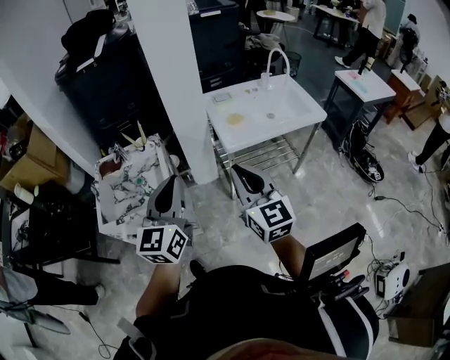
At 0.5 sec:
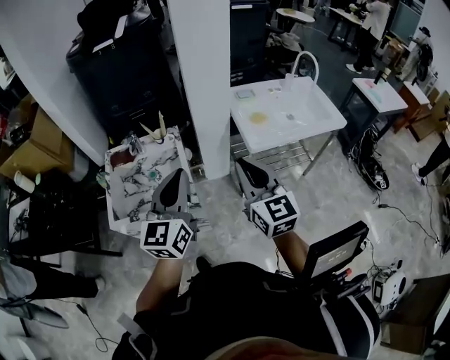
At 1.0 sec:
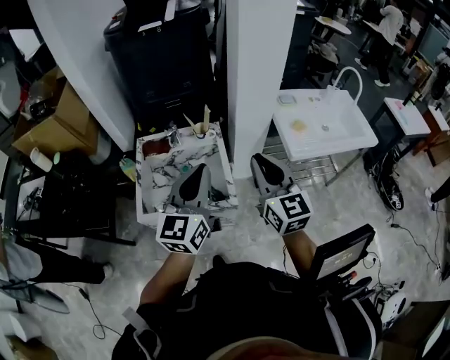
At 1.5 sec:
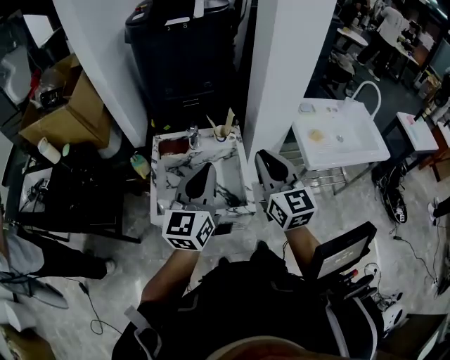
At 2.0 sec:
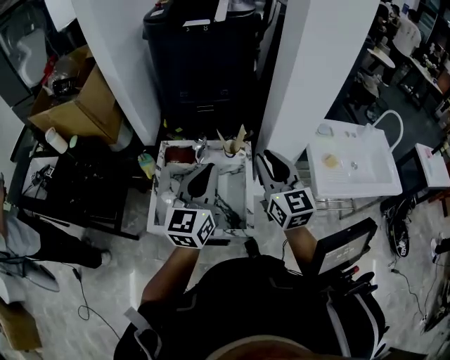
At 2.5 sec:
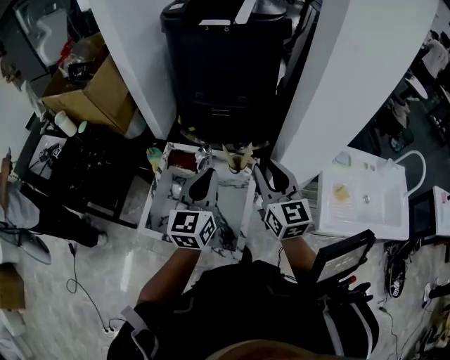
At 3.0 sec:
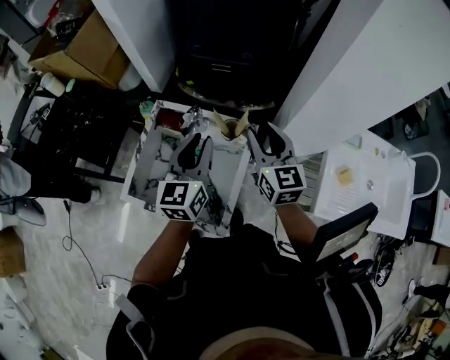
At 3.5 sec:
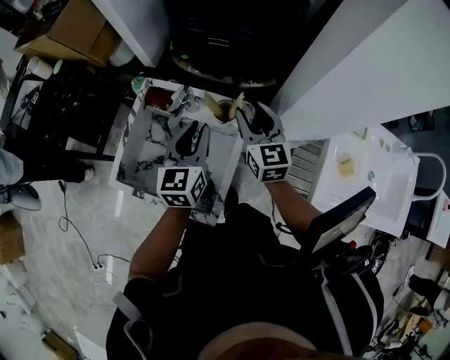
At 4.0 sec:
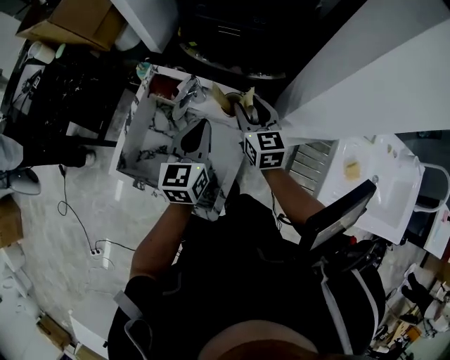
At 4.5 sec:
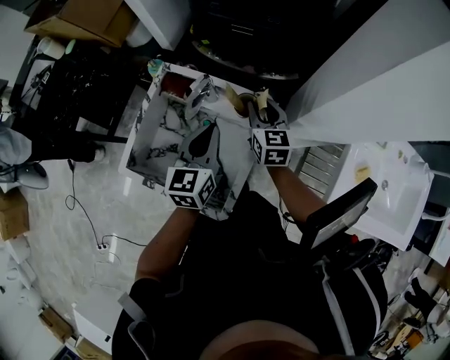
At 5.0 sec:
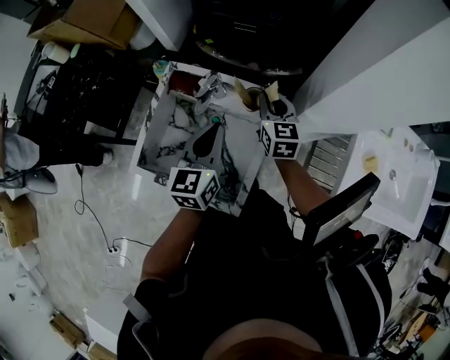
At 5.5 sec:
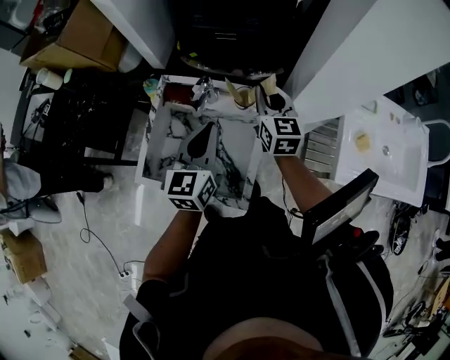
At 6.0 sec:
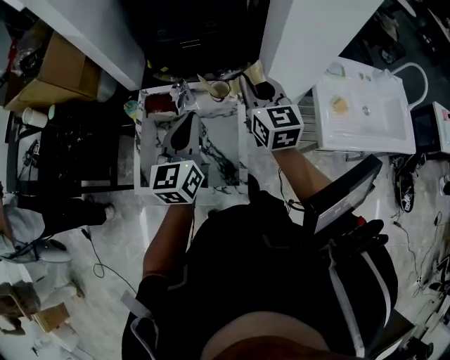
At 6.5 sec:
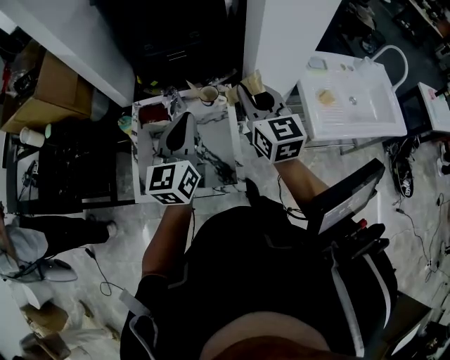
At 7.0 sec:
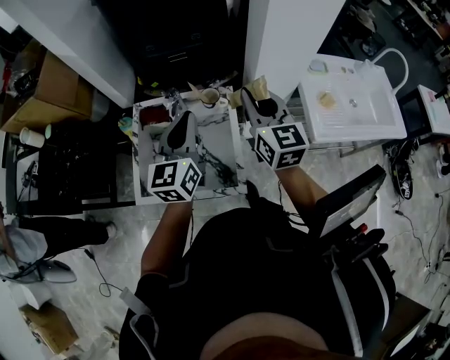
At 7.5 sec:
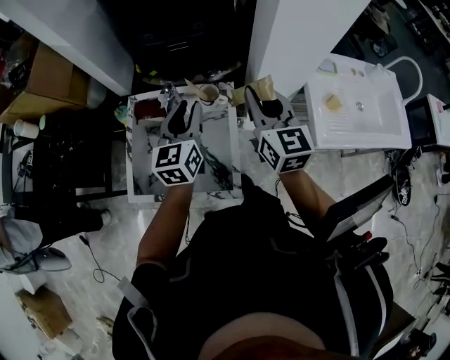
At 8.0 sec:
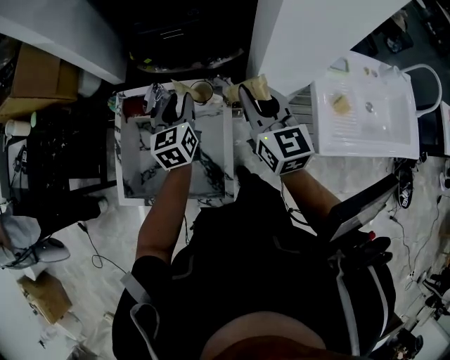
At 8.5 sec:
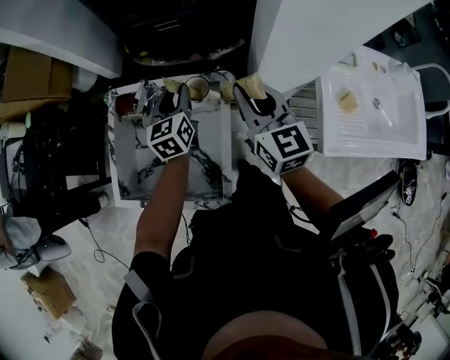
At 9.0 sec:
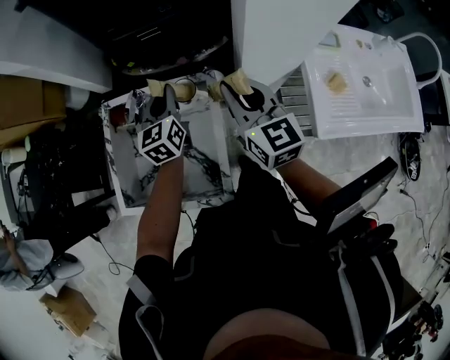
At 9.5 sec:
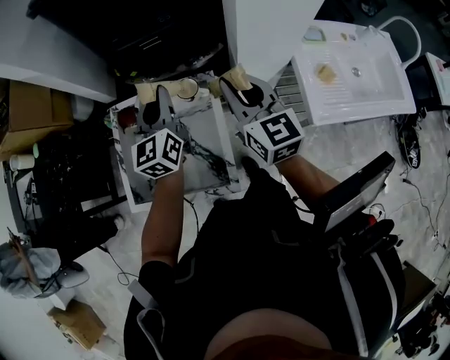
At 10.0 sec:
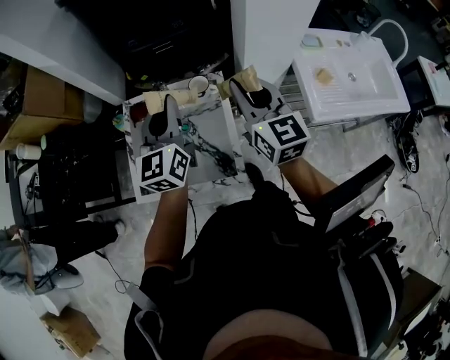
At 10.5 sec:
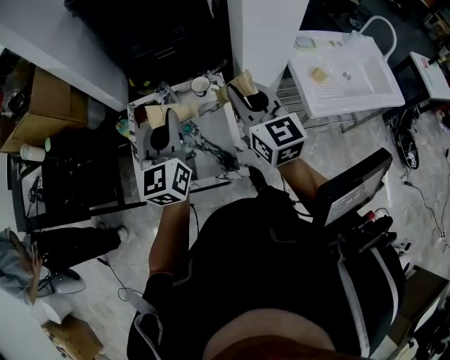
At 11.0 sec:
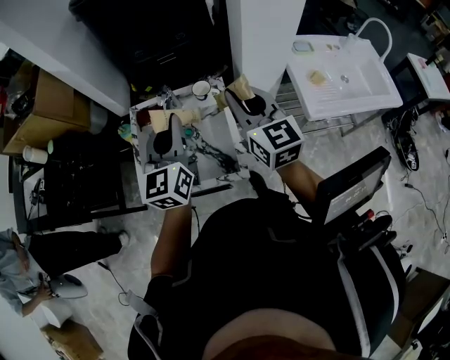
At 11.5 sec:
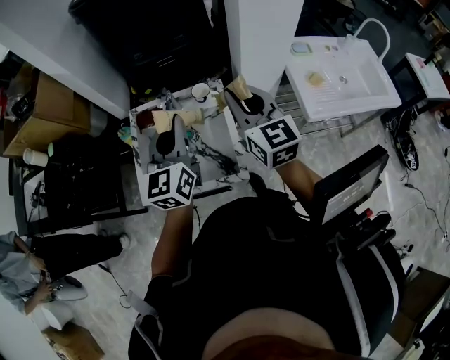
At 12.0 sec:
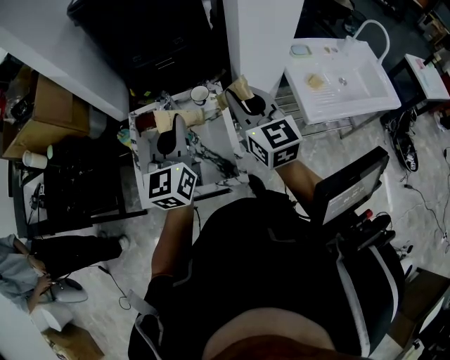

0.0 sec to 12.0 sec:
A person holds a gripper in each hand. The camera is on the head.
0.0 sec to 2.0 sec: The right gripper moves forward and to the left, some 40 cm; the left gripper goes approximately 35 cm to the left and forward.
2.0 sec to 4.0 sec: The two grippers go approximately 25 cm downward and forward. The left gripper changes its angle by roughly 30 degrees, while the right gripper swivels roughly 30 degrees, and opens its fingers.
4.0 sec to 6.0 sec: The two grippers go some 15 cm upward and backward. The right gripper rotates about 20 degrees, and closes up.
6.0 sec to 8.0 sec: The left gripper is displaced forward and downward by about 20 cm, and opens up. Meanwhile the right gripper reaches about 5 cm backward, then returns.
8.0 sec to 10.0 sec: The left gripper shifts approximately 20 cm upward and backward, turns by roughly 20 degrees, and closes, while the right gripper travels backward and upward by about 10 cm.
10.0 sec to 12.0 sec: The left gripper goes some 5 cm backward. Meanwhile the right gripper ends up about 5 cm from where it was.

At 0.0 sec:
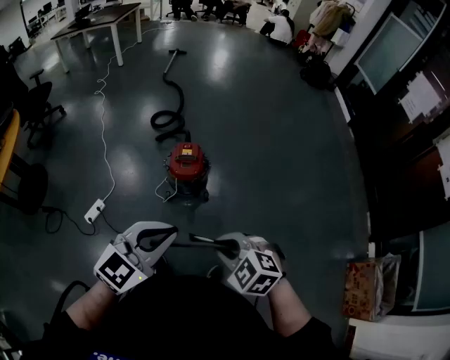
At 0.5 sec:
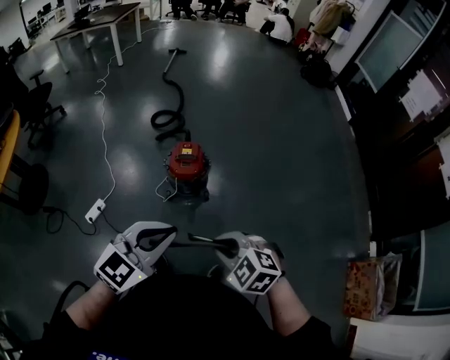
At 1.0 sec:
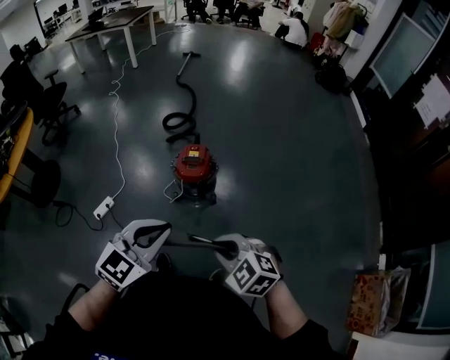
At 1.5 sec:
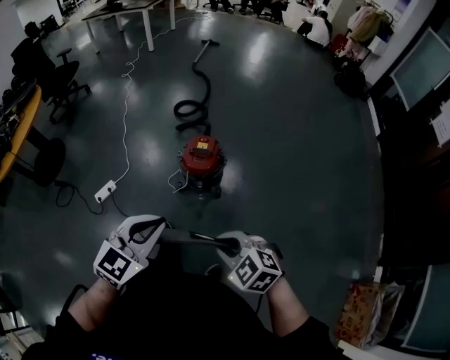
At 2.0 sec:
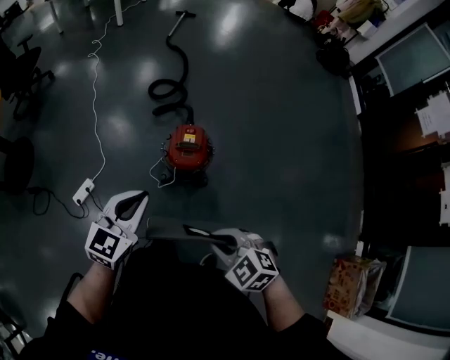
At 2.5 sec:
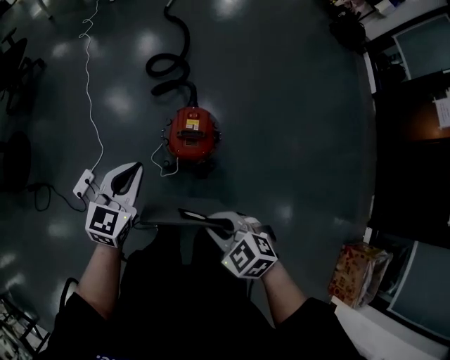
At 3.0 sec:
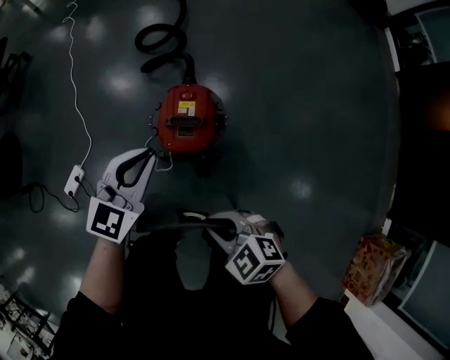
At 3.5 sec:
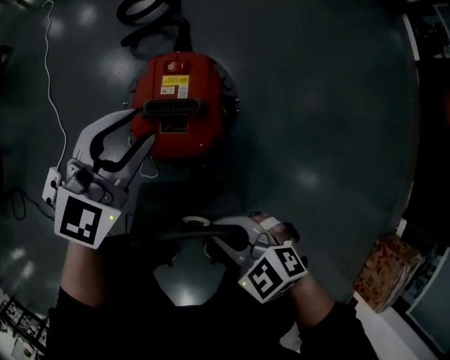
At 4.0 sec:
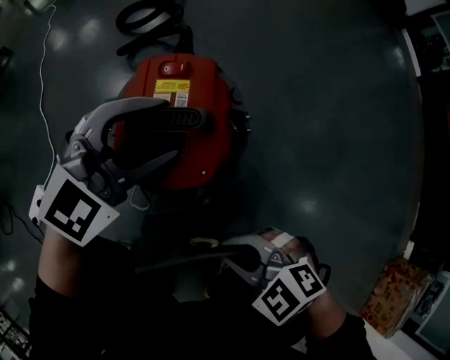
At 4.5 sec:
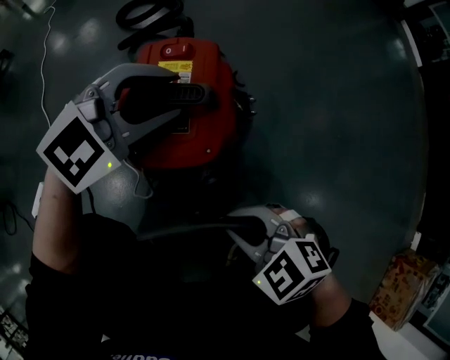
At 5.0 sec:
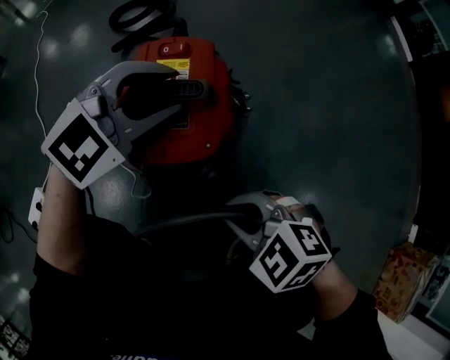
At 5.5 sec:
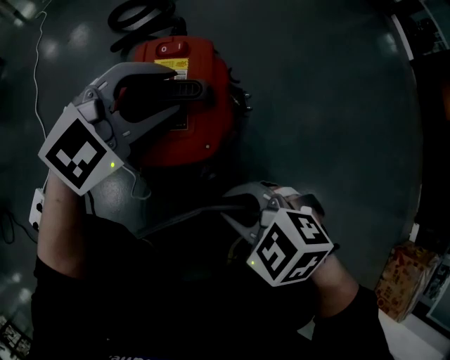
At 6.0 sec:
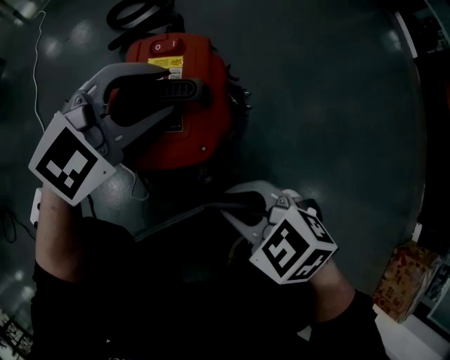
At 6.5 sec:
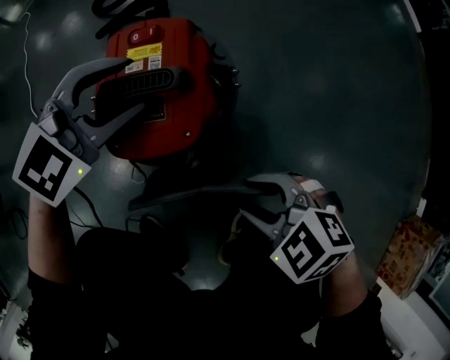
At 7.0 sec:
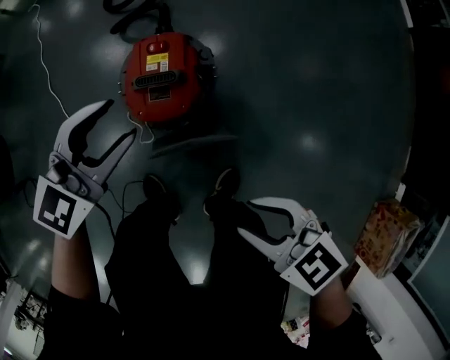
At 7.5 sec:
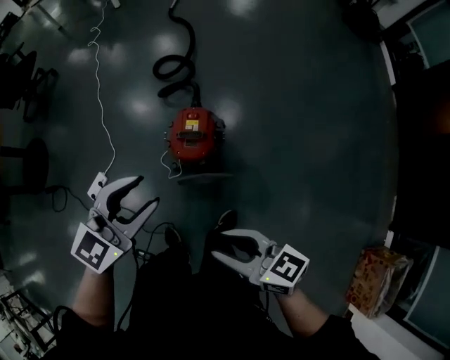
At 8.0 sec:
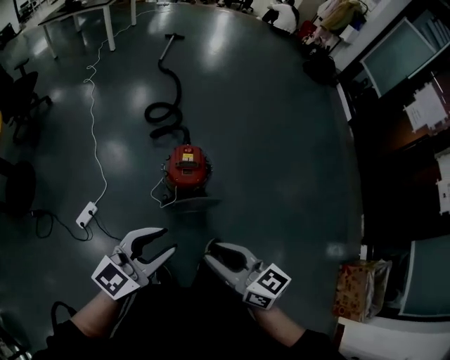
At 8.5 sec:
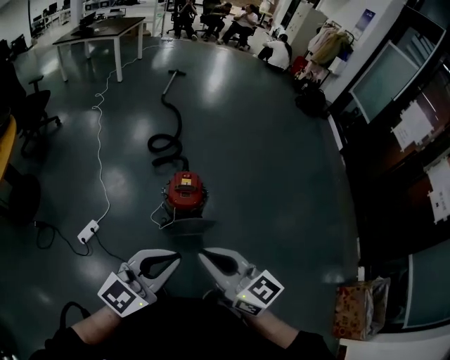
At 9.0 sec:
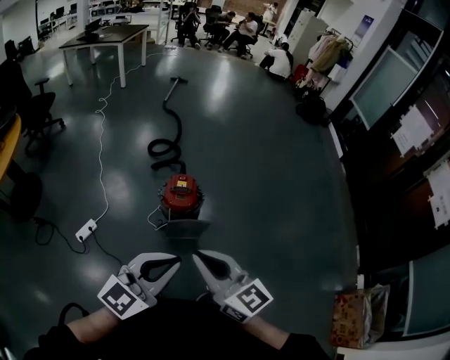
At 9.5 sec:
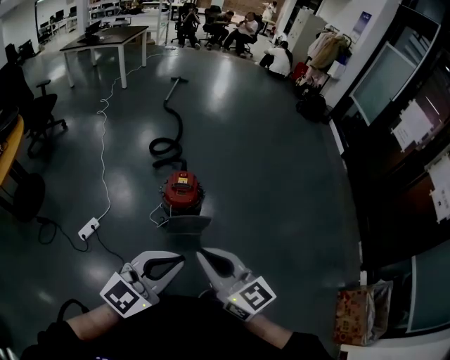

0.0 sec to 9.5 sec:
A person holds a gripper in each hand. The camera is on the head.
0.0 sec to 2.0 sec: The left gripper travels forward, downward and to the left by approximately 25 cm, and turns by about 20 degrees. Meanwhile the right gripper shifts about 15 cm forward and downward.
2.0 sec to 4.0 sec: The two grippers go about 40 cm downward. The left gripper rotates approximately 50 degrees, and opens up.
4.0 sec to 5.5 sec: There are only small adjustments of the grippers.
5.5 sec to 7.5 sec: The grippers both shift upward by approximately 50 cm. The left gripper changes its angle by about 40 degrees. Meanwhile the right gripper tips its fingers upward by roughly 40 degrees, and opens up.
7.5 sec to 9.5 sec: The left gripper goes some 30 cm backward and upward, and closes up. The right gripper travels upward and backward by about 25 cm, rotates approximately 40 degrees, and closes up.

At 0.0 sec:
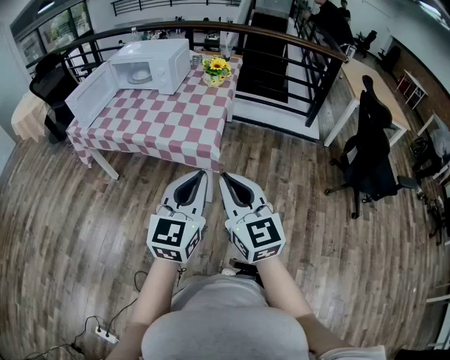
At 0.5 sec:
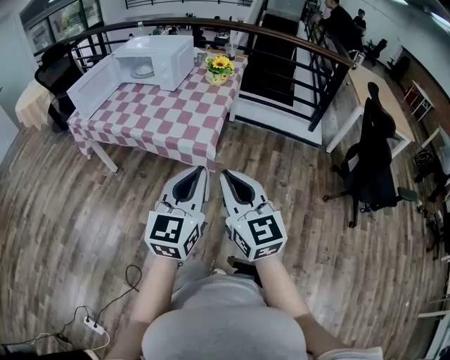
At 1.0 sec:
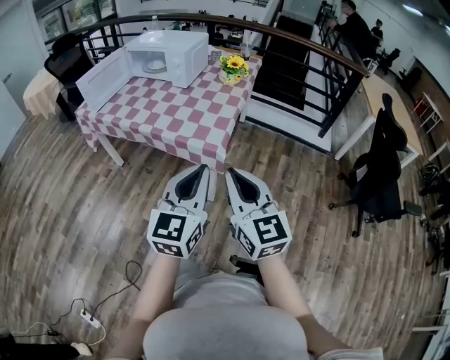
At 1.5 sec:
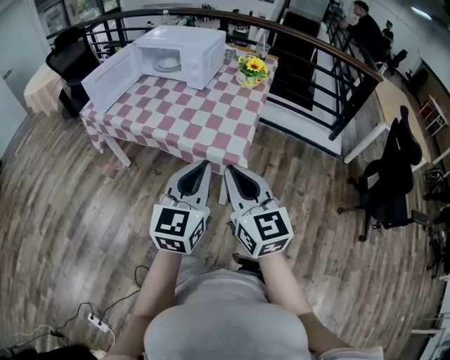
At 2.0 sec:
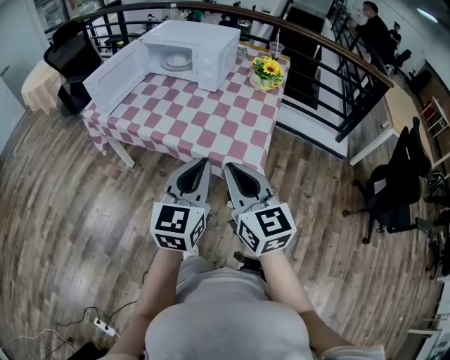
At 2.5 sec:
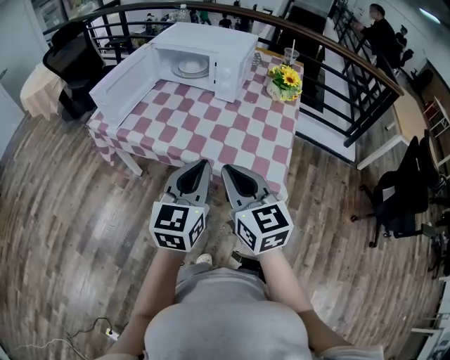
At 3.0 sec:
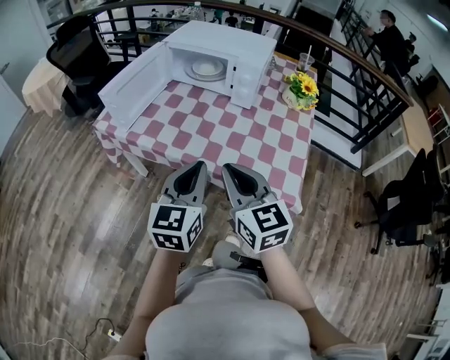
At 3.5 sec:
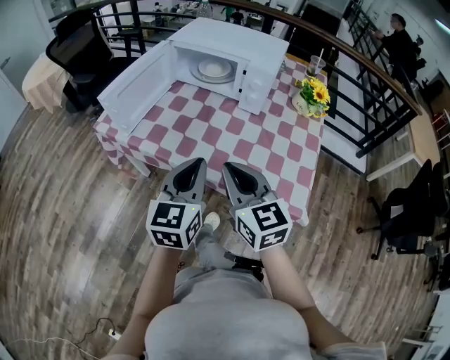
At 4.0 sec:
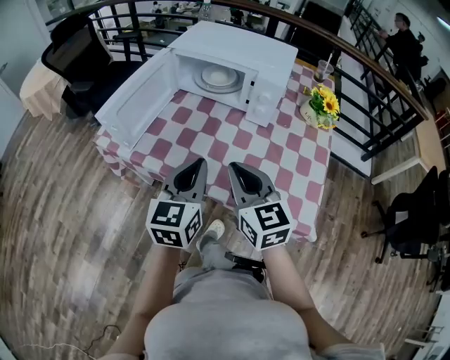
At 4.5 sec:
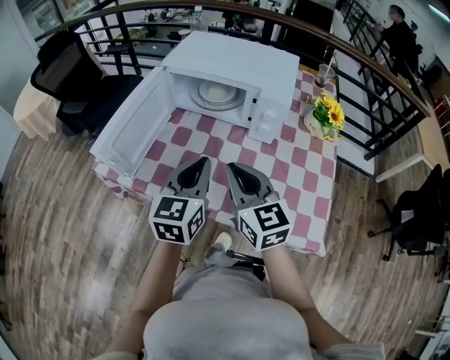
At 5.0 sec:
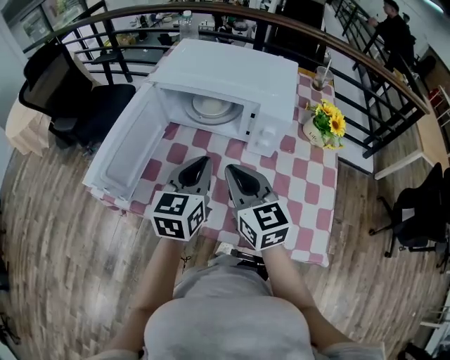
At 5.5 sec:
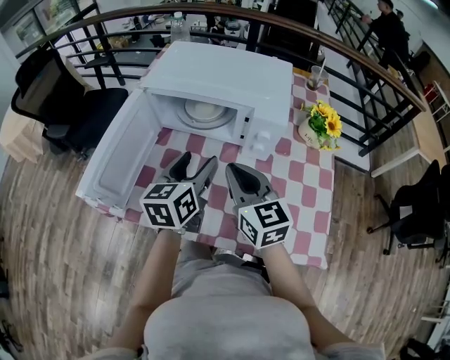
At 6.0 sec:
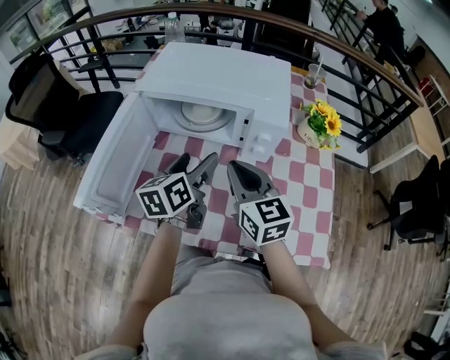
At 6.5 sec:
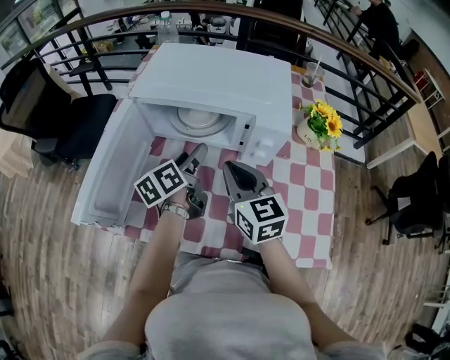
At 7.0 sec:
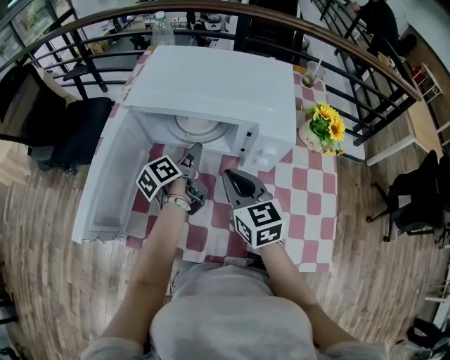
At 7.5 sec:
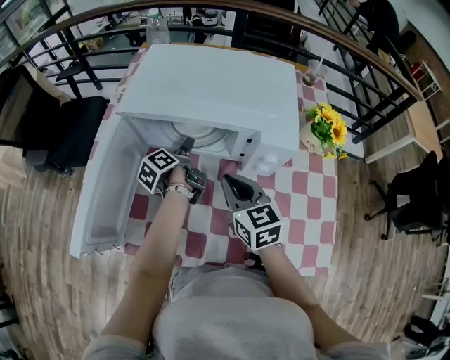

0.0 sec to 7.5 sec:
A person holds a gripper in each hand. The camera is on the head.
0.0 sec to 2.0 sec: The grippers both shift forward and to the left by approximately 25 cm.
2.0 sec to 4.0 sec: The grippers both shift forward and to the left by some 35 cm.
4.0 sec to 5.5 sec: Both grippers travel together forward, roughly 20 cm. The left gripper opens its fingers.
5.5 sec to 7.5 sec: The right gripper is displaced forward and downward by some 10 cm. Meanwhile the left gripper travels forward and downward by roughly 25 cm, and rolls counterclockwise, seen from behind, by about 60 degrees.
